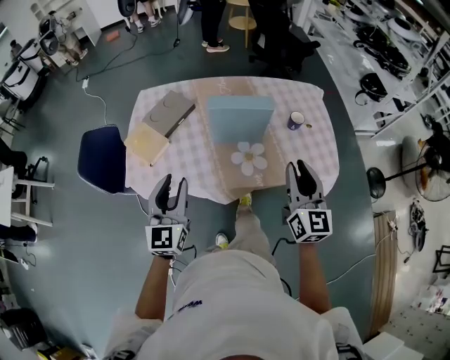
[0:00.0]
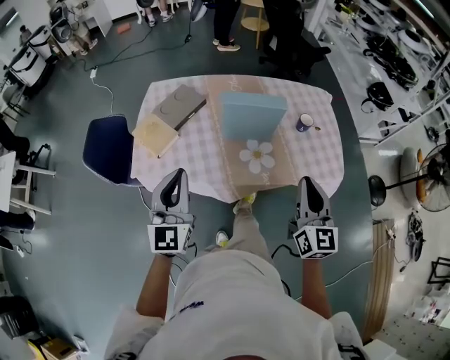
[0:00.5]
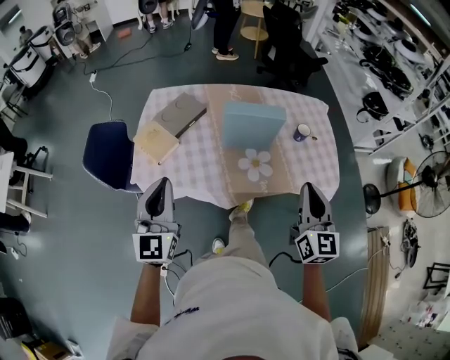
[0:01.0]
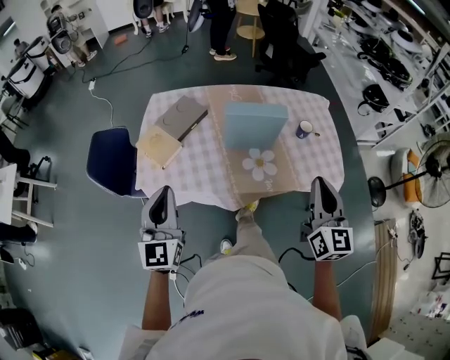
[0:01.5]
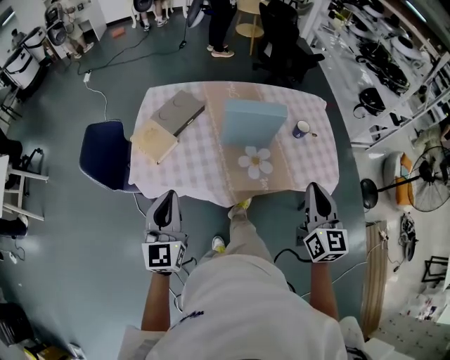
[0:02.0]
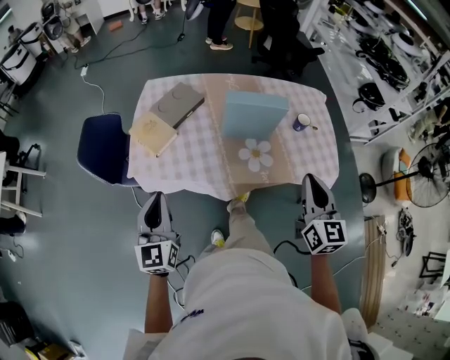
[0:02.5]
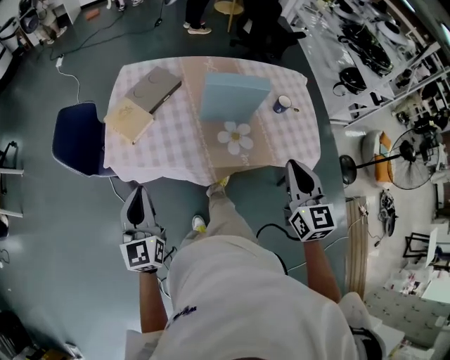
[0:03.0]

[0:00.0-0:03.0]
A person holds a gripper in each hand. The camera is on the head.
0:00.0 to 0:01.5: The left gripper is displaced to the left and upward by about 10 cm, while the right gripper changes place by some 5 cm.
0:01.5 to 0:03.0: The left gripper heads downward, covering roughly 5 cm, while the right gripper moves about 5 cm.

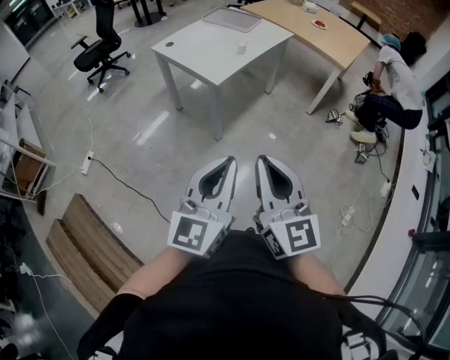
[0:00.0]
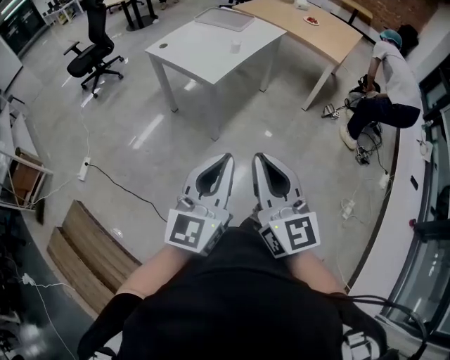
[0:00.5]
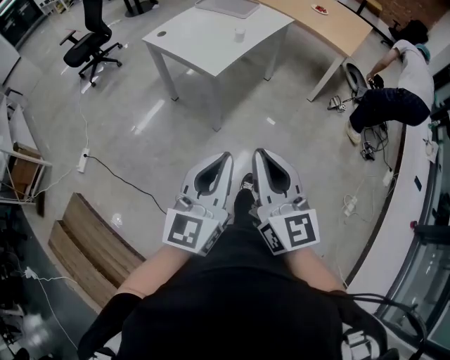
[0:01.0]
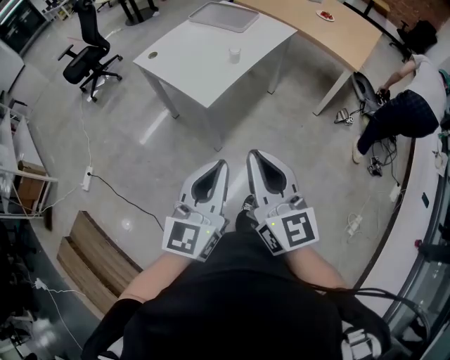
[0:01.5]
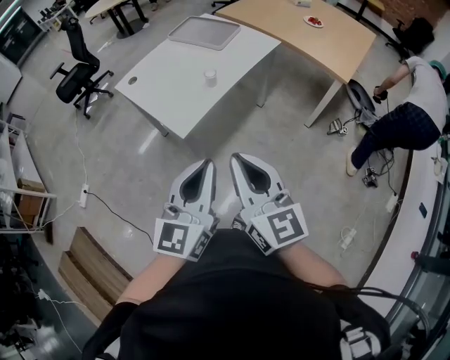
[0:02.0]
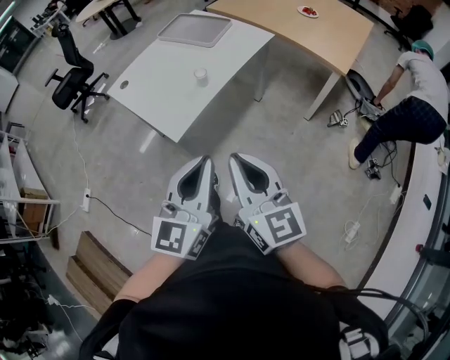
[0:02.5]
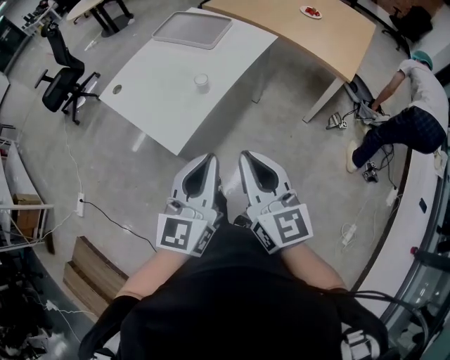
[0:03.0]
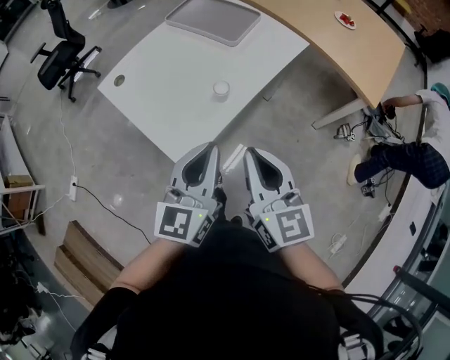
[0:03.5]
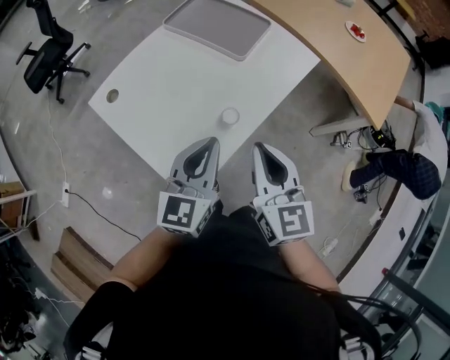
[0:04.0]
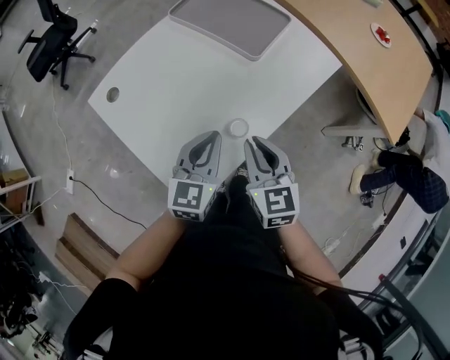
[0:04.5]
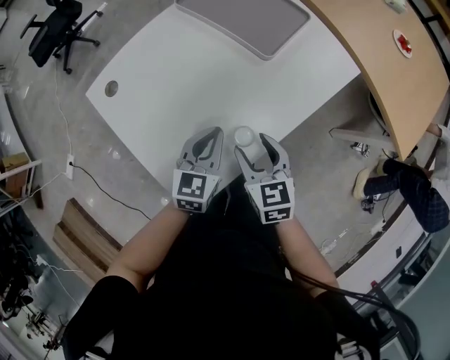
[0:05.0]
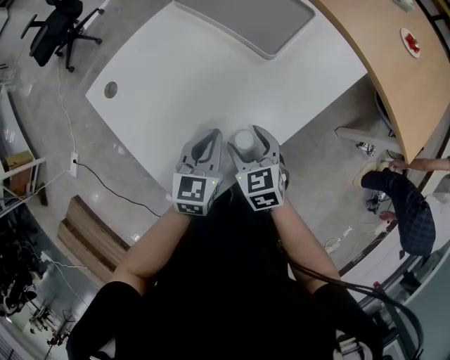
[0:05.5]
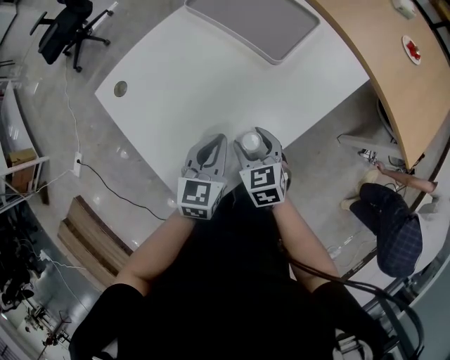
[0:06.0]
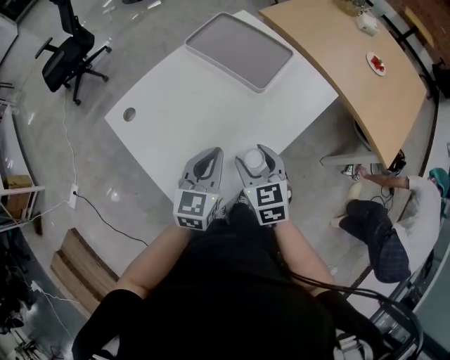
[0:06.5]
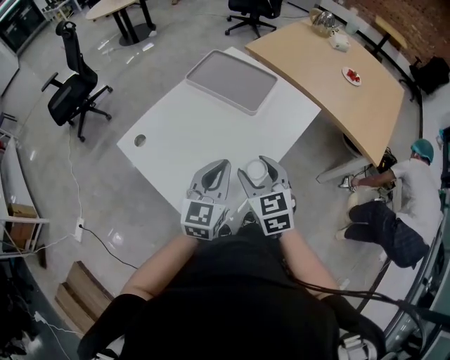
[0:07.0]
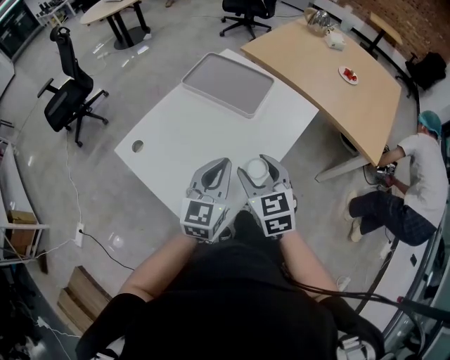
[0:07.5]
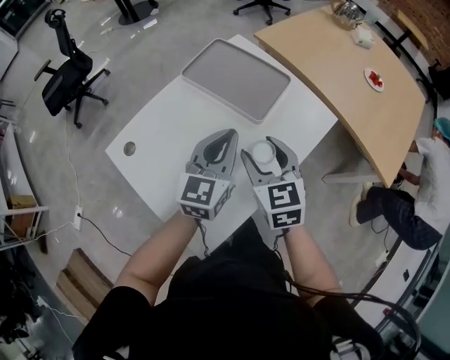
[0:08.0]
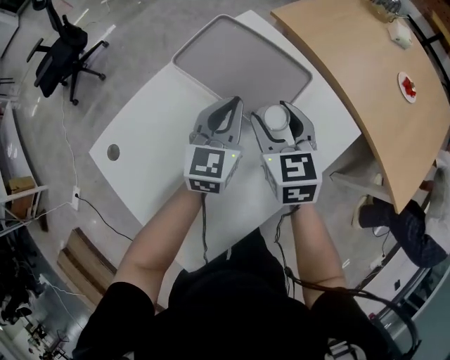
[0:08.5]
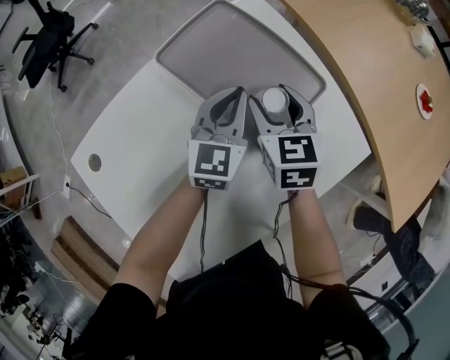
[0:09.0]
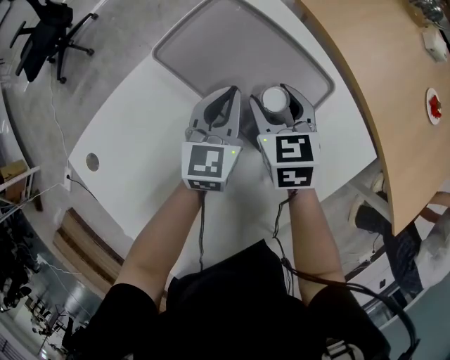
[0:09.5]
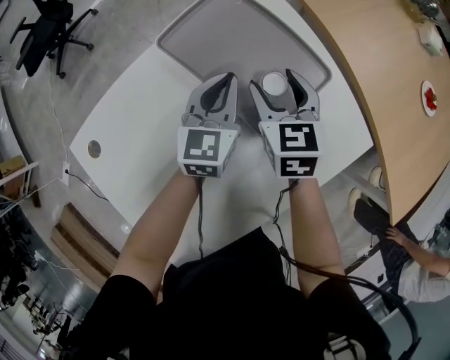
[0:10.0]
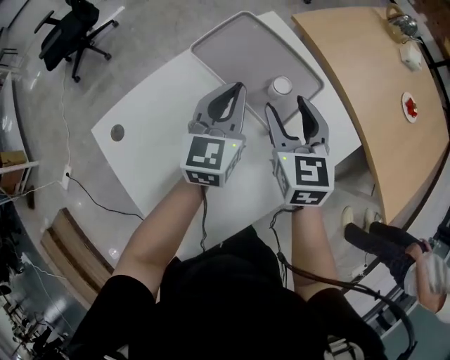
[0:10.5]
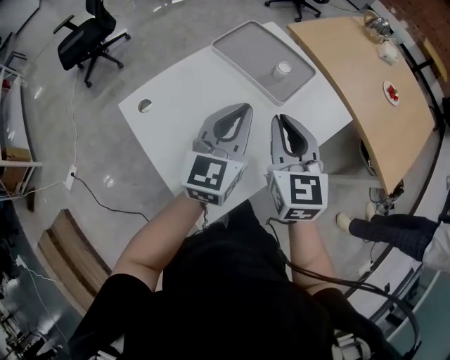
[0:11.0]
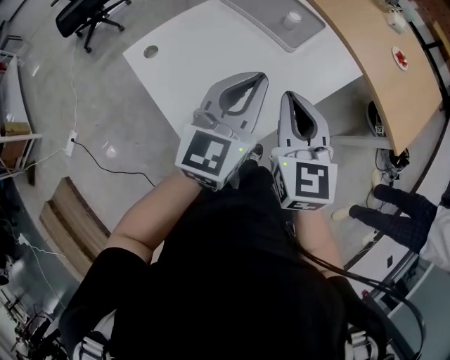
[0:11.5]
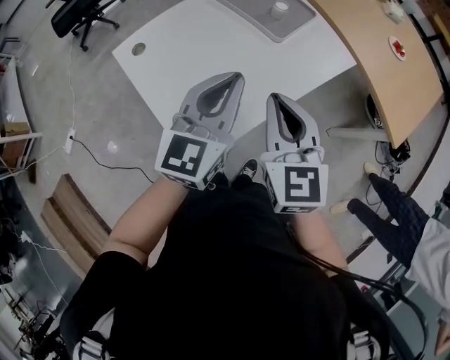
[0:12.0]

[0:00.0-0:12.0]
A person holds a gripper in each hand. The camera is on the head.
0:00.0 to 0:02.0: The grippers both shift forward by some 35 cm.
0:02.0 to 0:04.0: The two grippers travel together, forward, roughly 40 cm.
0:04.0 to 0:06.0: The grippers both shift downward and forward by approximately 25 cm. The right gripper changes its angle by approximately 30 degrees, and opens.
0:06.0 to 0:08.0: The grippers both shift upward and forward by roughly 20 cm.
0:08.0 to 0:10.0: Both grippers travel together forward and downward, approximately 35 cm.
0:10.0 to 0:12.0: The two grippers travel together, backward, some 50 cm. Both grippers move upward, about 25 cm. The right gripper closes its fingers.

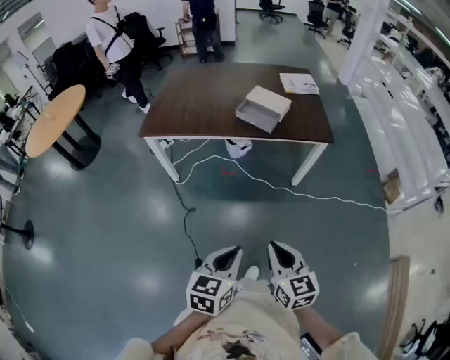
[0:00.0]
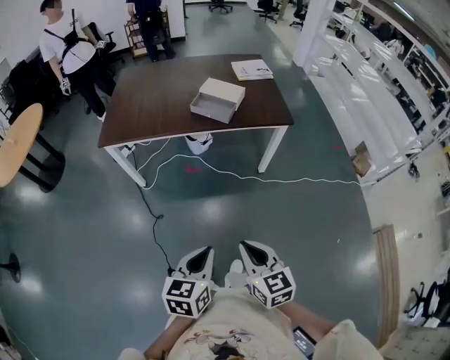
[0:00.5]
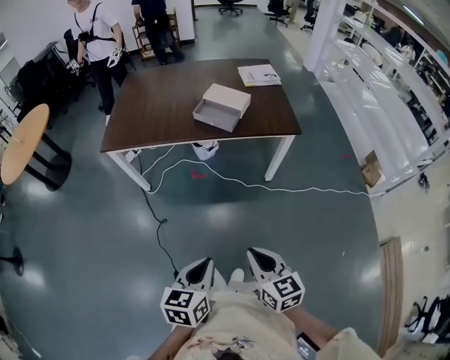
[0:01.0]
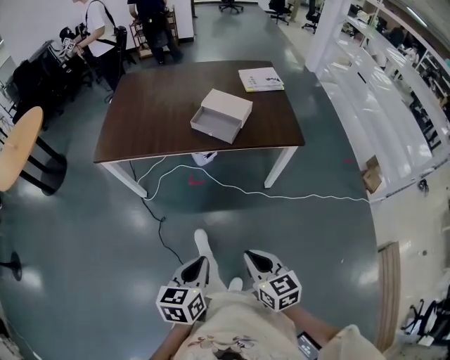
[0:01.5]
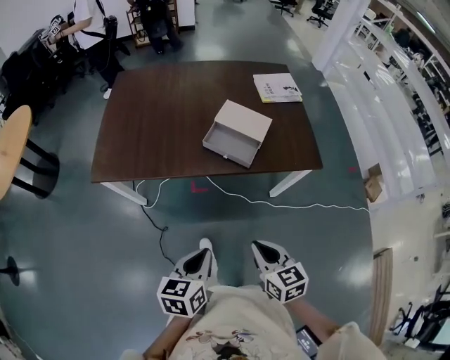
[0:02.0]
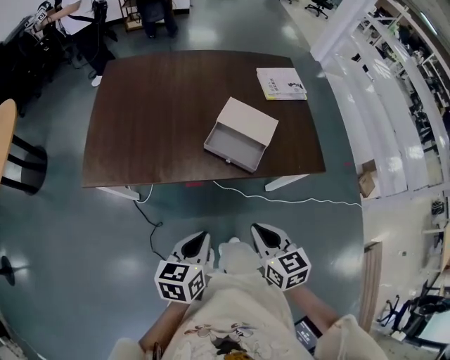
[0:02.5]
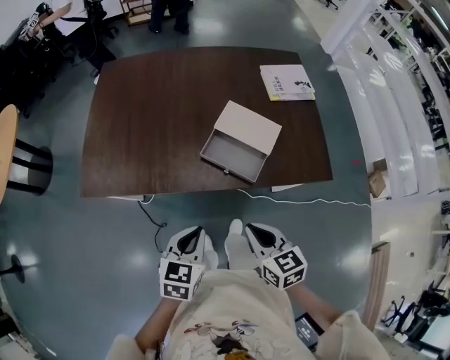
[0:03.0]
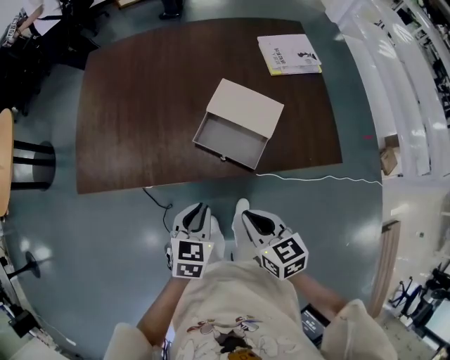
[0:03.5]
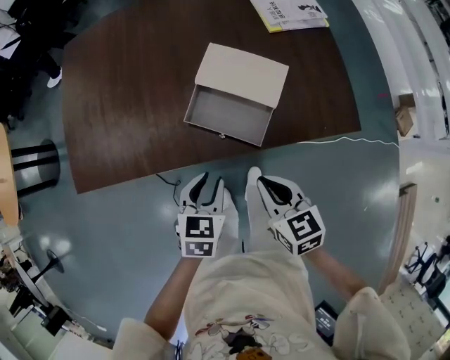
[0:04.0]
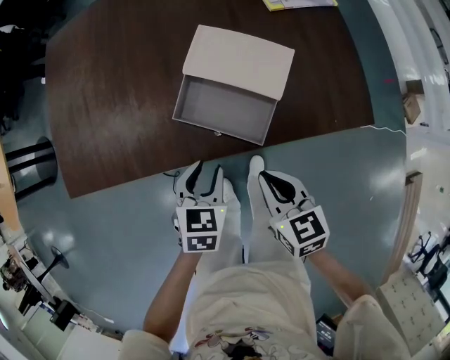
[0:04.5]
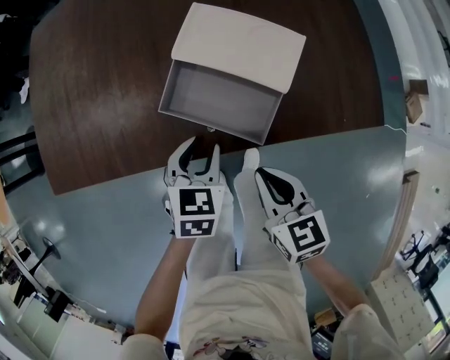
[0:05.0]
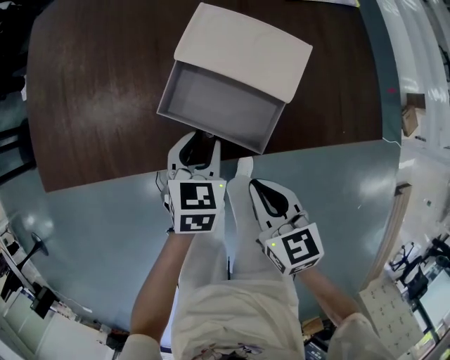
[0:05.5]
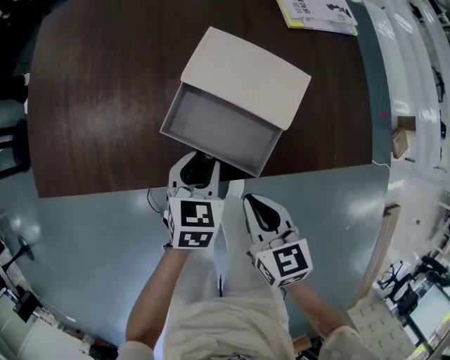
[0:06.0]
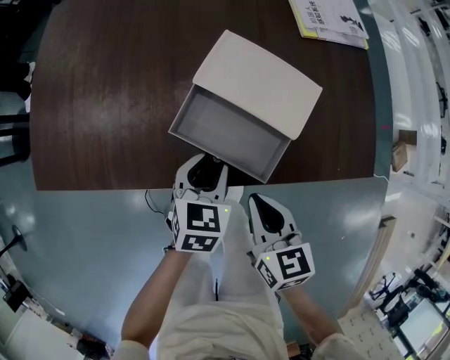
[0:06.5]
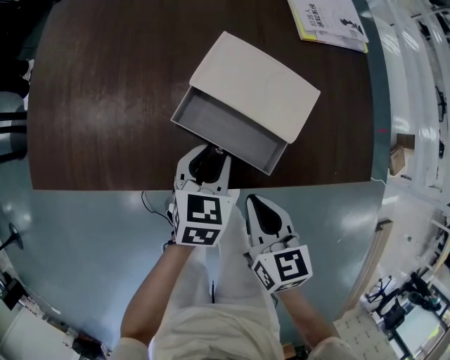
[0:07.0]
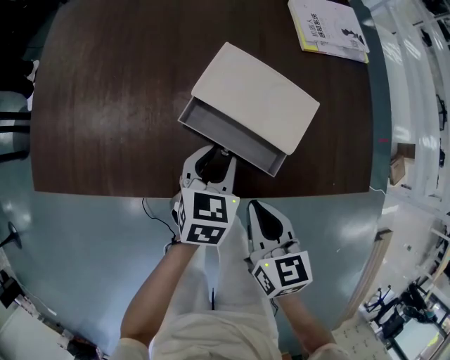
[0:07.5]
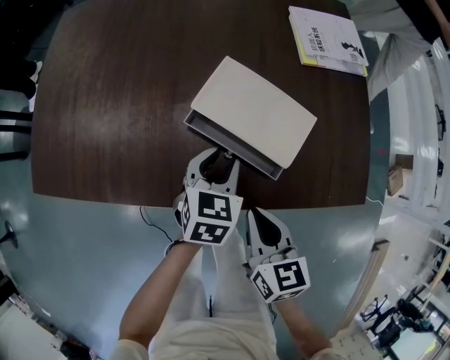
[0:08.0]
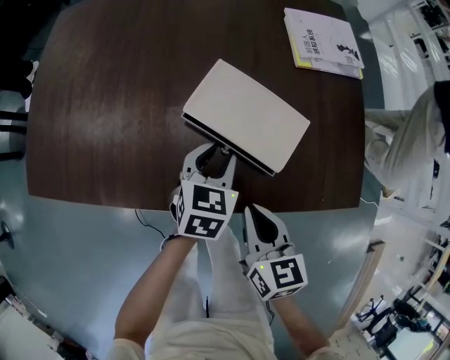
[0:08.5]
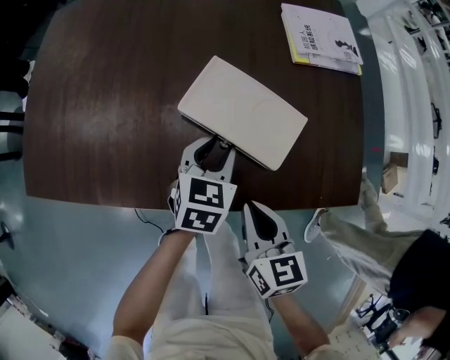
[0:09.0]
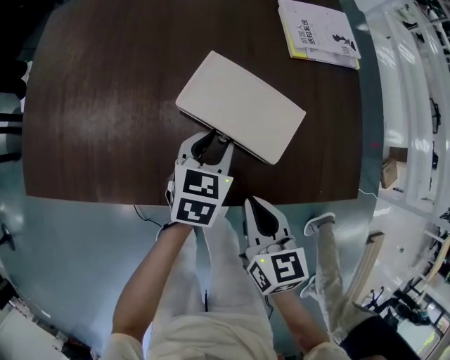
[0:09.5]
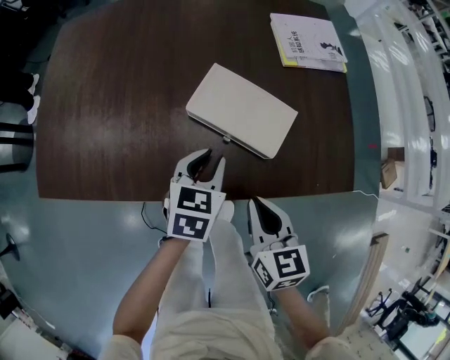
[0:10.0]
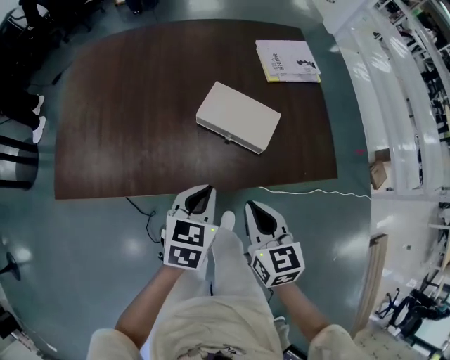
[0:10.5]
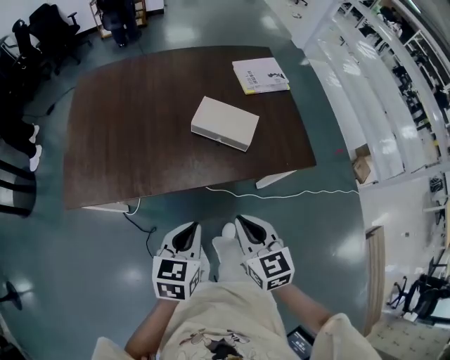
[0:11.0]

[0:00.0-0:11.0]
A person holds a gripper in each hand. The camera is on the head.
0:00.0 to 0:02.0: The grippers both shift forward by about 35 cm.
0:02.0 to 0:03.5: Both grippers move forward, approximately 25 cm. The left gripper rotates about 30 degrees.
0:03.5 to 0:05.5: The left gripper travels downward, forward and to the right by about 25 cm, and opens up; the right gripper travels downward and forward by roughly 15 cm.
0:05.5 to 0:07.5: The right gripper changes place by approximately 5 cm; the left gripper shifts by some 5 cm.
0:07.5 to 0:09.0: The left gripper shifts some 5 cm forward.
0:09.0 to 0:11.0: The two grippers go about 35 cm backward and upward. The left gripper closes.

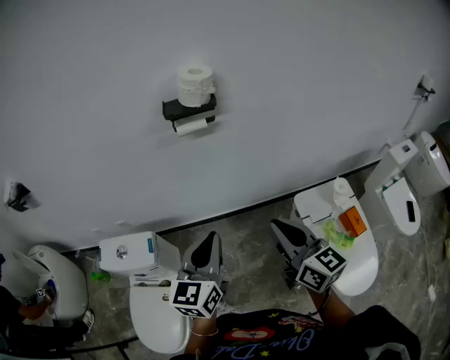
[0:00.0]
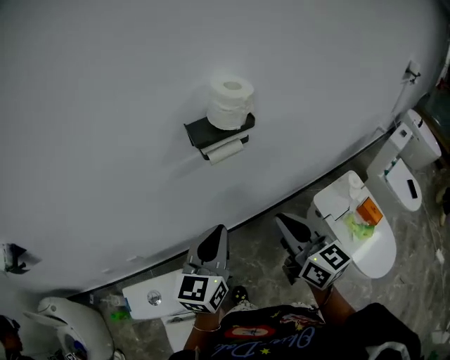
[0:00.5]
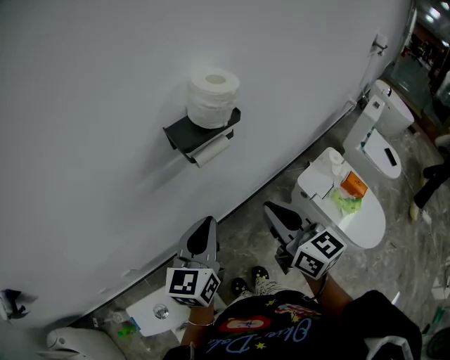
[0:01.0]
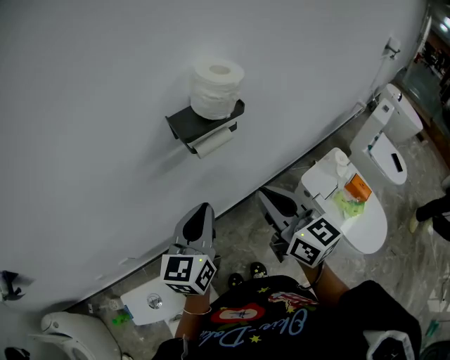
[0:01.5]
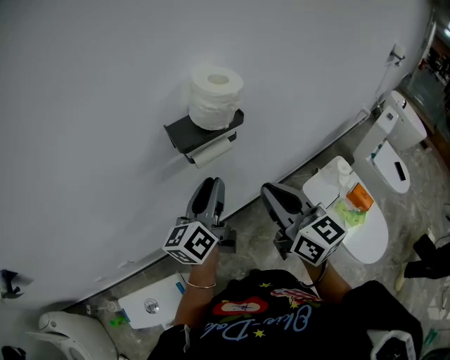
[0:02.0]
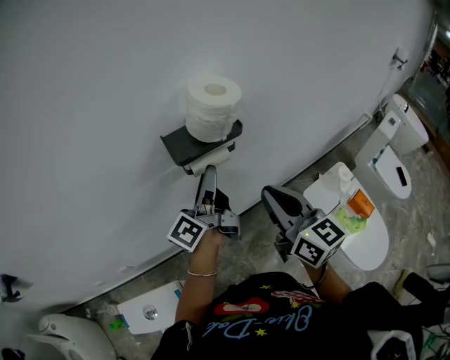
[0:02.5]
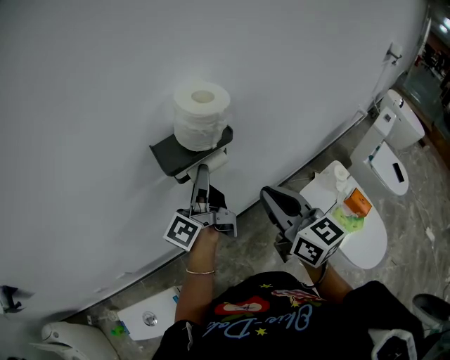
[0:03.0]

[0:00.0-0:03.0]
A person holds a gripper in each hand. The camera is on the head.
0:00.0 to 0:01.5: The left gripper shifts approximately 25 cm forward and to the left, while the right gripper travels to the left and forward by some 25 cm.
0:01.5 to 0:03.0: The right gripper moves forward and to the right, about 10 cm. Meanwhile the left gripper travels forward by approximately 15 cm, twists approximately 50 degrees counterclockwise, seen from behind, and opens up.
